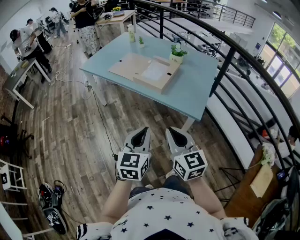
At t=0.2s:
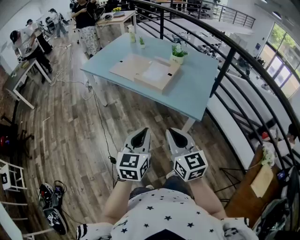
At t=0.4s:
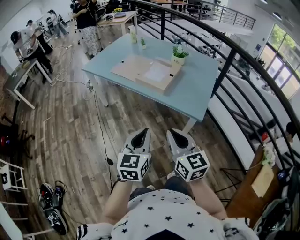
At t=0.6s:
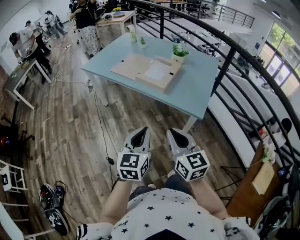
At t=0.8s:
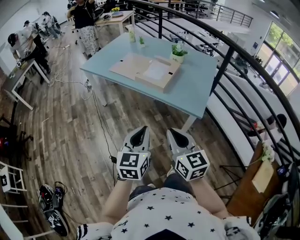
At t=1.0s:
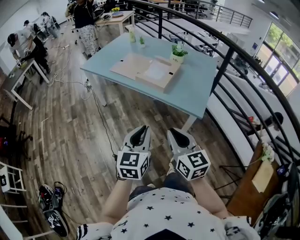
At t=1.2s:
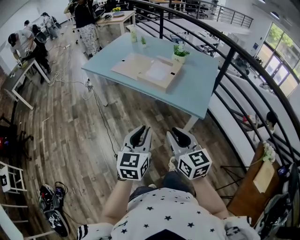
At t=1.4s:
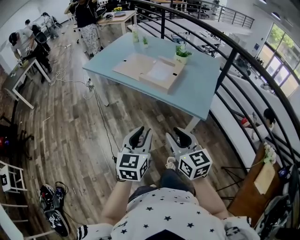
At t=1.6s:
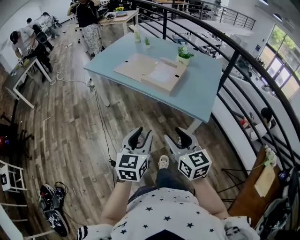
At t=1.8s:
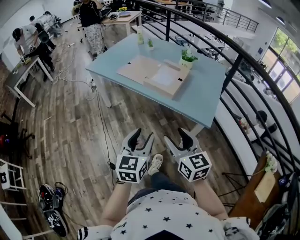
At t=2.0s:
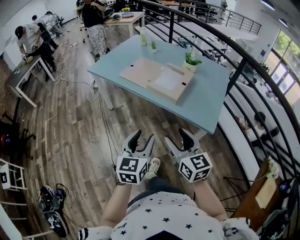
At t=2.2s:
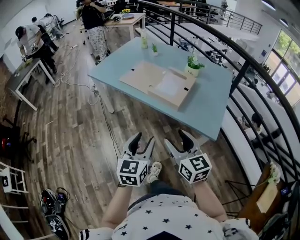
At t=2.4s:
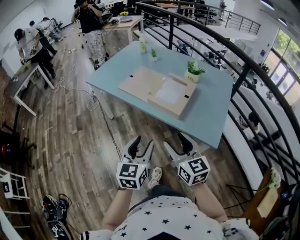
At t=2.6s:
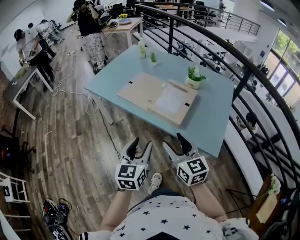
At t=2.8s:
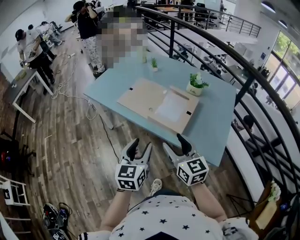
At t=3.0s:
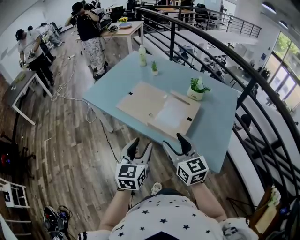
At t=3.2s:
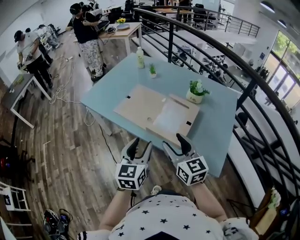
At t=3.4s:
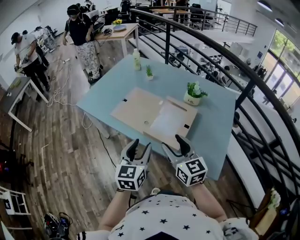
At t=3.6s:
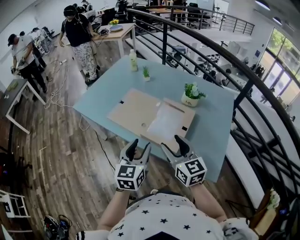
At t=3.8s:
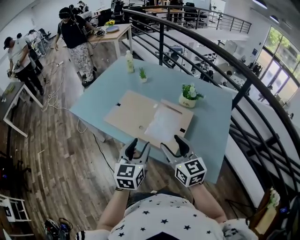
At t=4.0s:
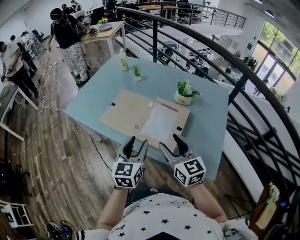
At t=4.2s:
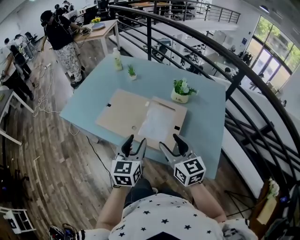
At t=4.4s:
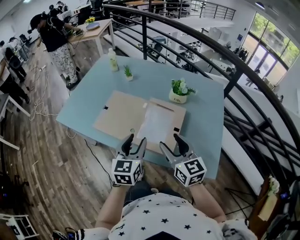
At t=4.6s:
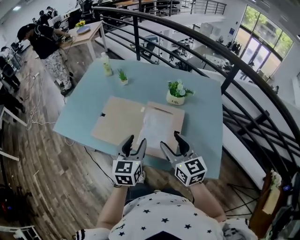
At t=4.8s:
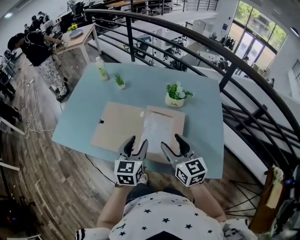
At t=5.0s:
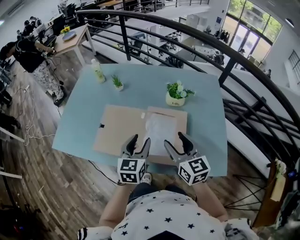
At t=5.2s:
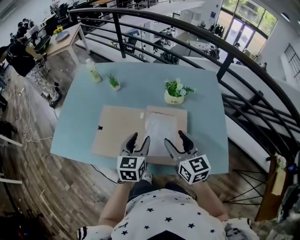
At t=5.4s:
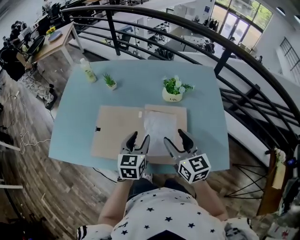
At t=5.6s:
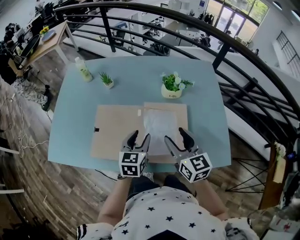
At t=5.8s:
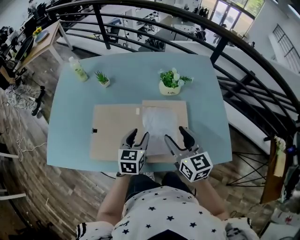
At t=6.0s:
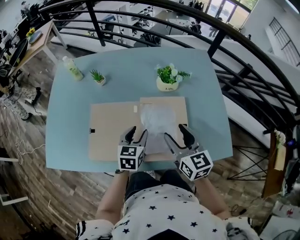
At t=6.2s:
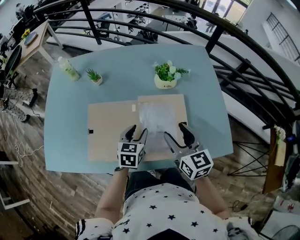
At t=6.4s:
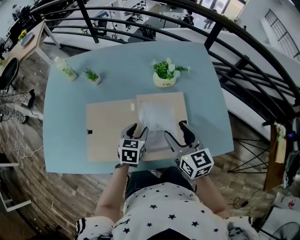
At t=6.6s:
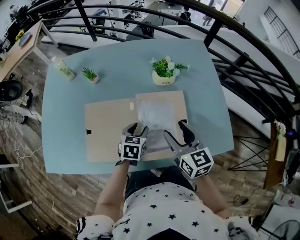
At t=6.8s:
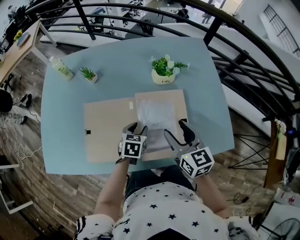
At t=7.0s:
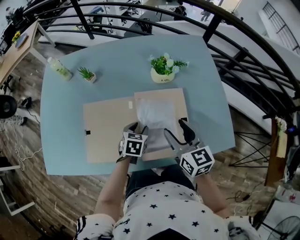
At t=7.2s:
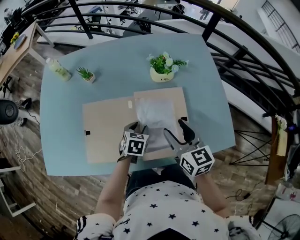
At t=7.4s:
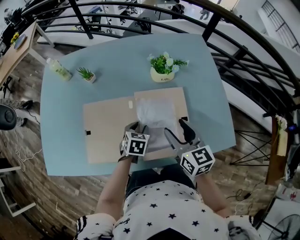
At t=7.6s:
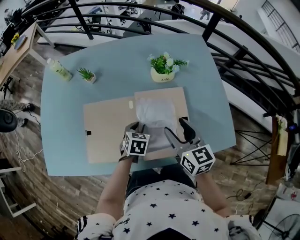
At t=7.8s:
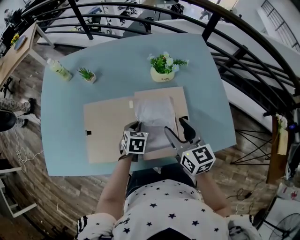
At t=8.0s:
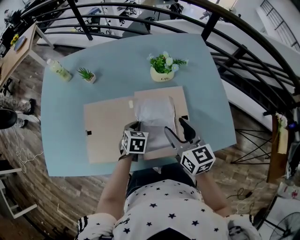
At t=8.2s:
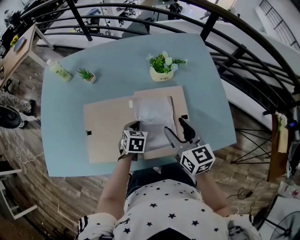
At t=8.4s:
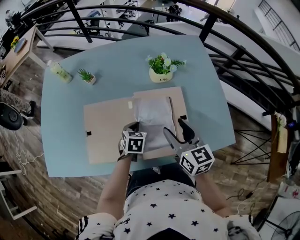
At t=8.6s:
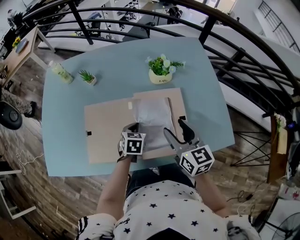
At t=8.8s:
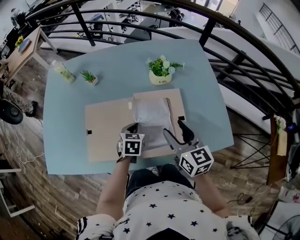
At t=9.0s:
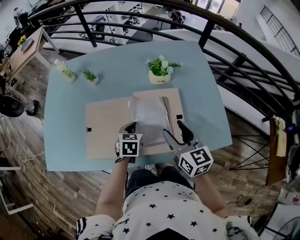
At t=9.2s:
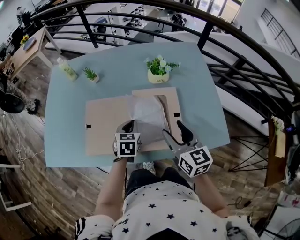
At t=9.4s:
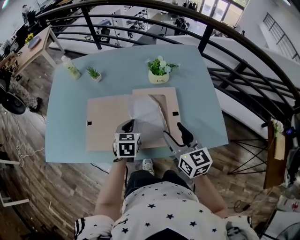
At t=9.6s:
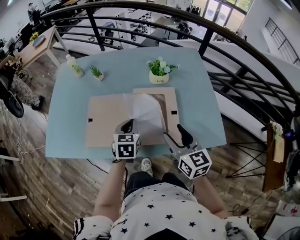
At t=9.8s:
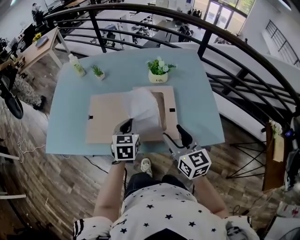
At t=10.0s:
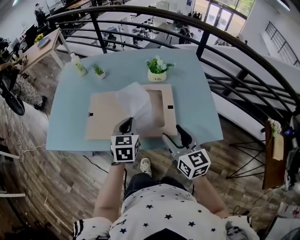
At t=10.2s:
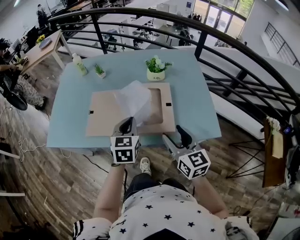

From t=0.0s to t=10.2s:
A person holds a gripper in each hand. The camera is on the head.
From t=0.0s to t=1.4s: The right gripper opens its fingers; the left gripper goes some 5 cm to the left, and opens up.
From t=1.4s to t=3.0s: The grippers both shift forward by roughly 30 cm. The right gripper opens. Meanwhile the left gripper opens.
From t=3.0s to t=4.4s: The left gripper travels forward by about 15 cm. The right gripper shifts approximately 15 cm forward and to the right.
From t=4.4s to t=5.8s: The left gripper moves forward and downward, approximately 20 cm, and changes its angle by some 30 degrees. Meanwhile the right gripper shifts some 15 cm forward and downward, and turns by roughly 20 degrees.
From t=5.8s to t=7.2s: The left gripper shifts about 10 cm downward, and rotates some 30 degrees.
From t=7.2s to t=8.8s: The left gripper closes.
From t=8.8s to t=10.2s: The left gripper shifts some 20 cm upward and backward, and turns by approximately 20 degrees. The right gripper goes roughly 15 cm backward.

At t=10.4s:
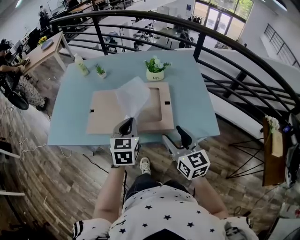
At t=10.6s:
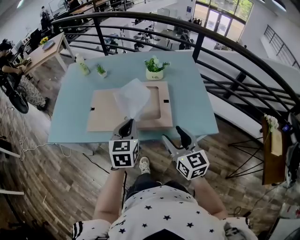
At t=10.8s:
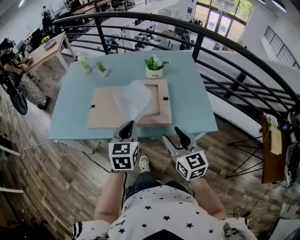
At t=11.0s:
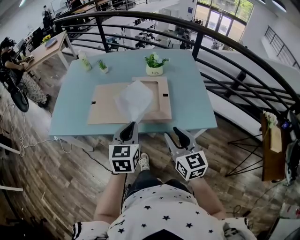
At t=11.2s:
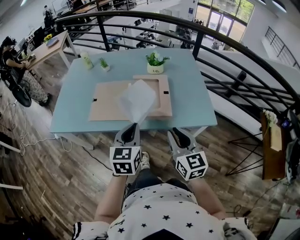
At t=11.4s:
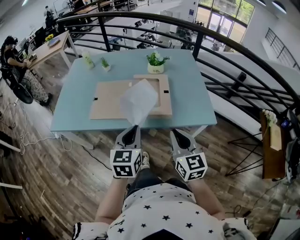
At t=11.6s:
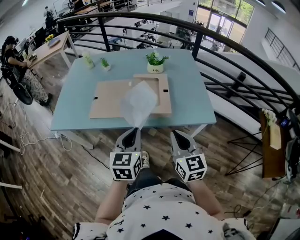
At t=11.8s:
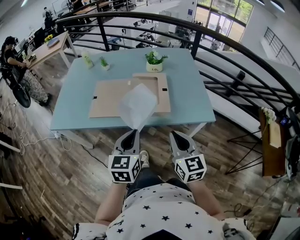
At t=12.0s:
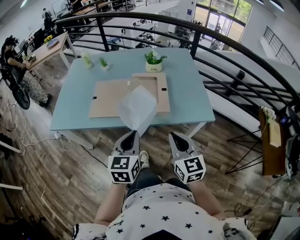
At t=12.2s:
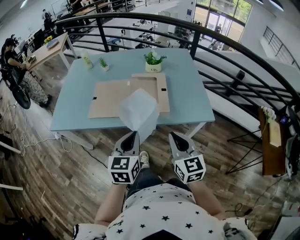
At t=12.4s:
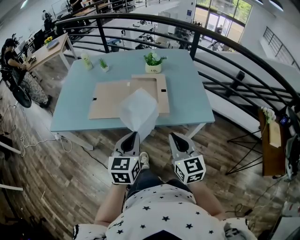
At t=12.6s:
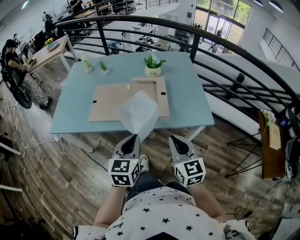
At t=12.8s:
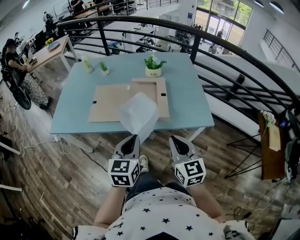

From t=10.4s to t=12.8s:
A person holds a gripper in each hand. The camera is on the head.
From t=10.4s to t=11.6s: The grippers both shift backward by some 15 cm. The right gripper closes its fingers.
From t=11.6s to t=12.8s: The grippers make only small movements.

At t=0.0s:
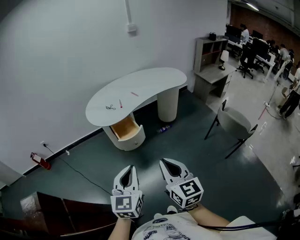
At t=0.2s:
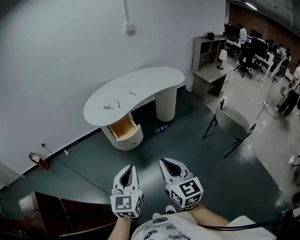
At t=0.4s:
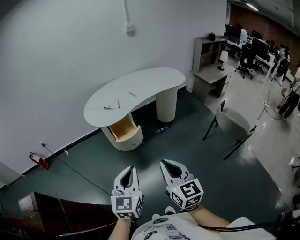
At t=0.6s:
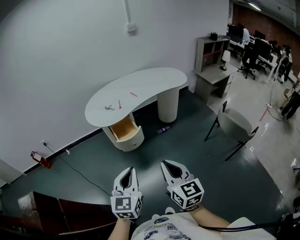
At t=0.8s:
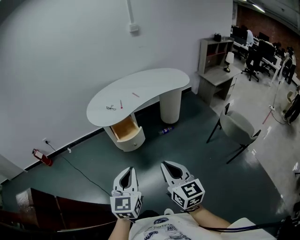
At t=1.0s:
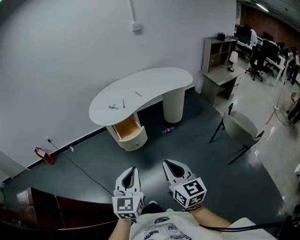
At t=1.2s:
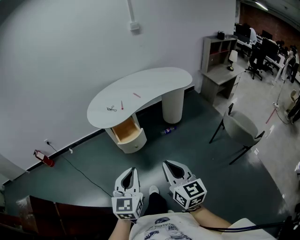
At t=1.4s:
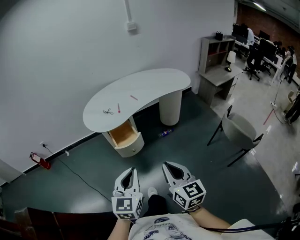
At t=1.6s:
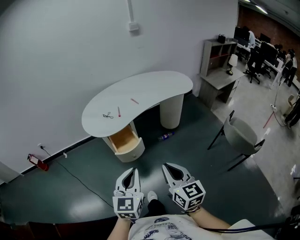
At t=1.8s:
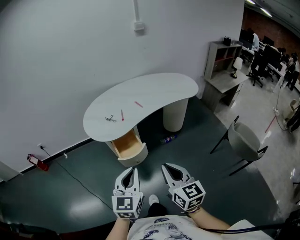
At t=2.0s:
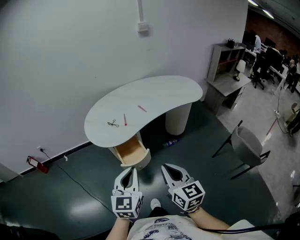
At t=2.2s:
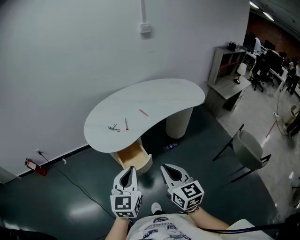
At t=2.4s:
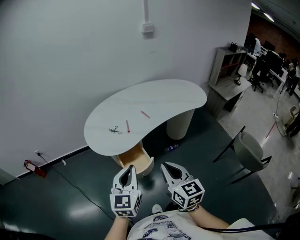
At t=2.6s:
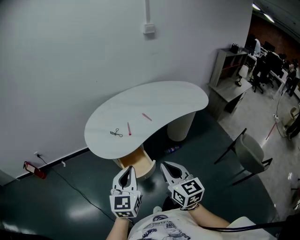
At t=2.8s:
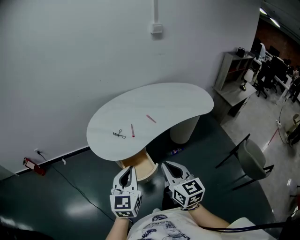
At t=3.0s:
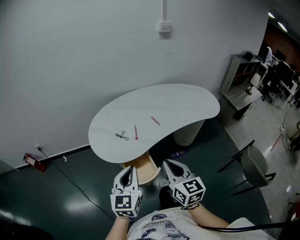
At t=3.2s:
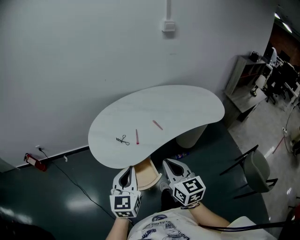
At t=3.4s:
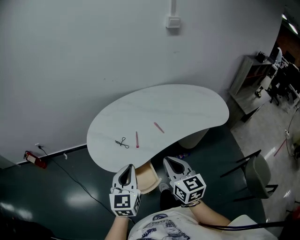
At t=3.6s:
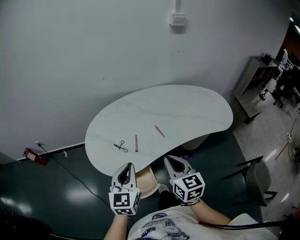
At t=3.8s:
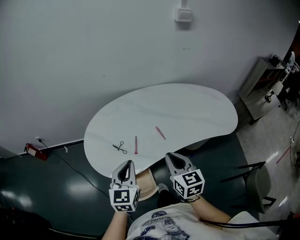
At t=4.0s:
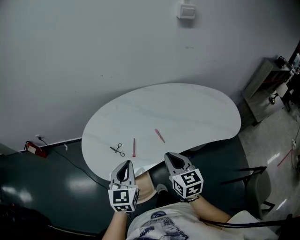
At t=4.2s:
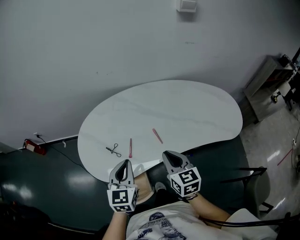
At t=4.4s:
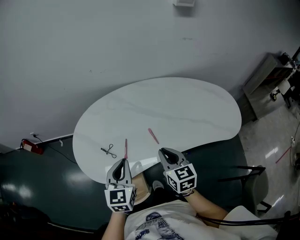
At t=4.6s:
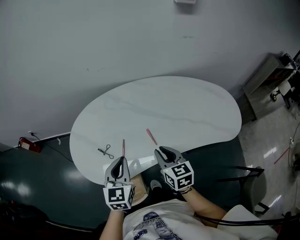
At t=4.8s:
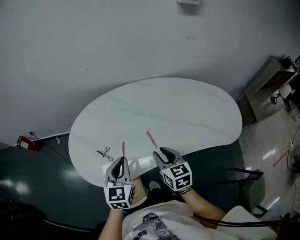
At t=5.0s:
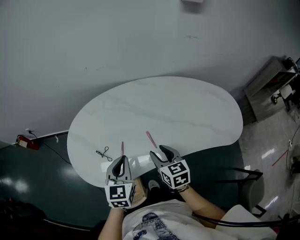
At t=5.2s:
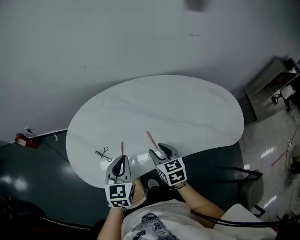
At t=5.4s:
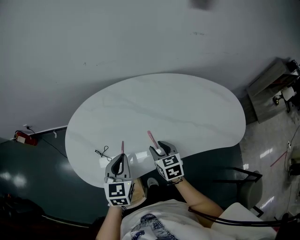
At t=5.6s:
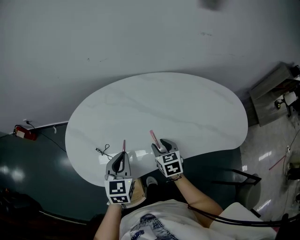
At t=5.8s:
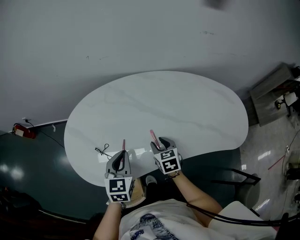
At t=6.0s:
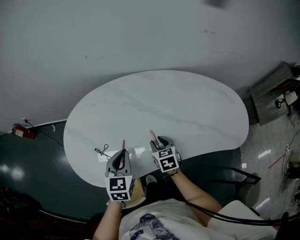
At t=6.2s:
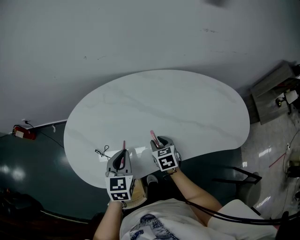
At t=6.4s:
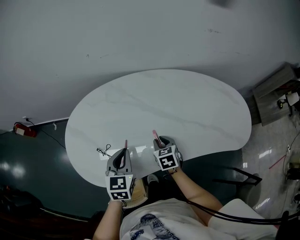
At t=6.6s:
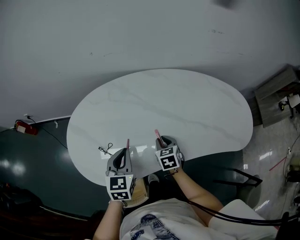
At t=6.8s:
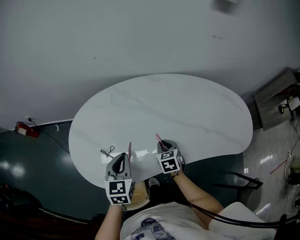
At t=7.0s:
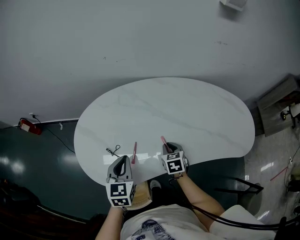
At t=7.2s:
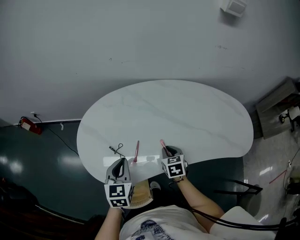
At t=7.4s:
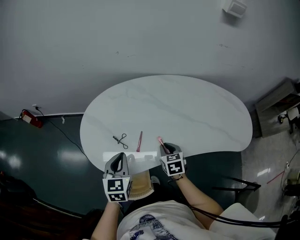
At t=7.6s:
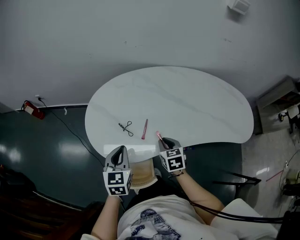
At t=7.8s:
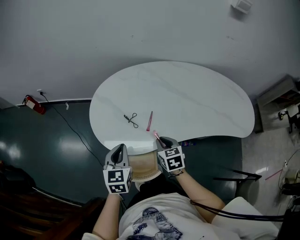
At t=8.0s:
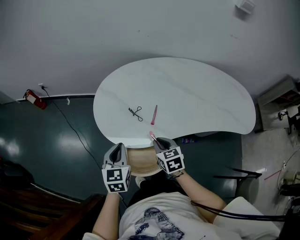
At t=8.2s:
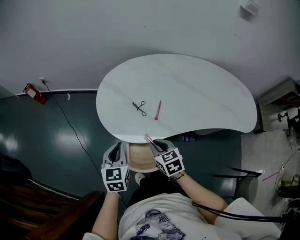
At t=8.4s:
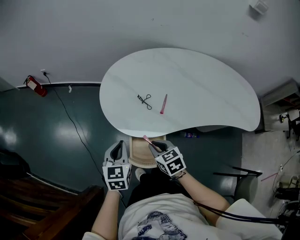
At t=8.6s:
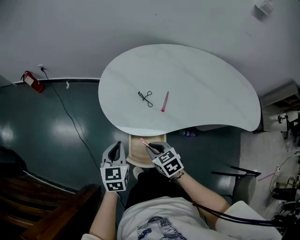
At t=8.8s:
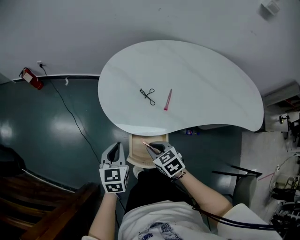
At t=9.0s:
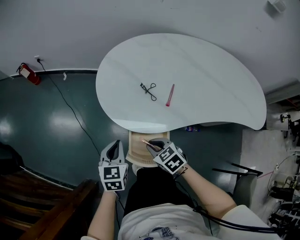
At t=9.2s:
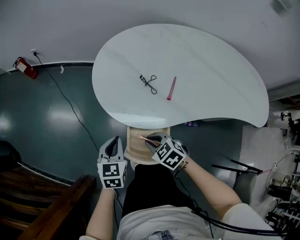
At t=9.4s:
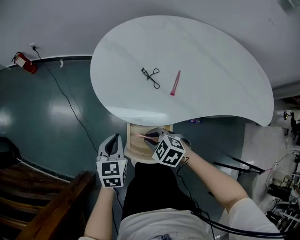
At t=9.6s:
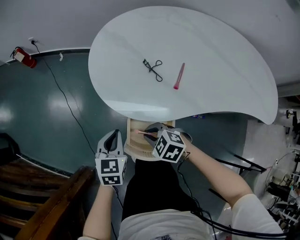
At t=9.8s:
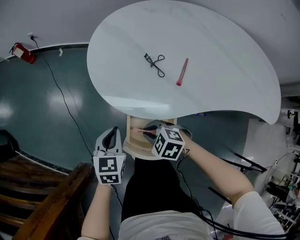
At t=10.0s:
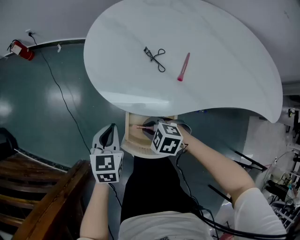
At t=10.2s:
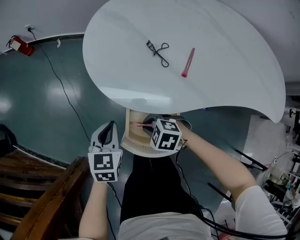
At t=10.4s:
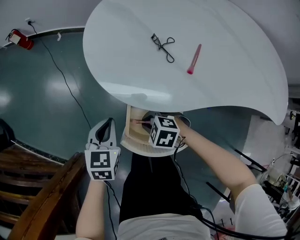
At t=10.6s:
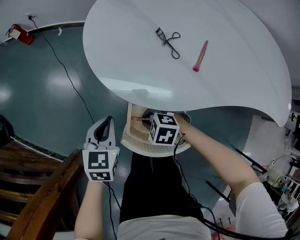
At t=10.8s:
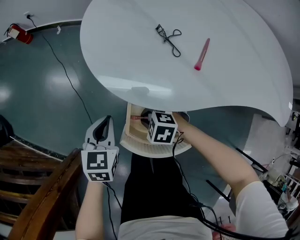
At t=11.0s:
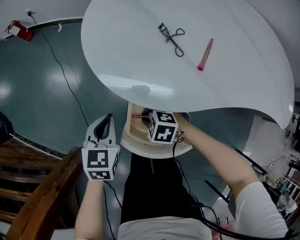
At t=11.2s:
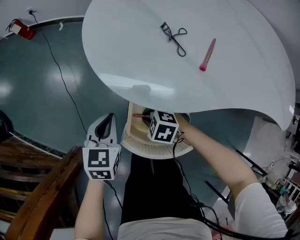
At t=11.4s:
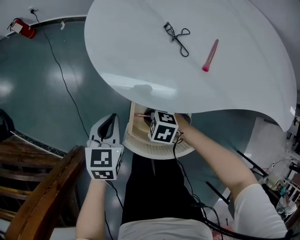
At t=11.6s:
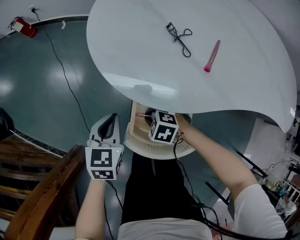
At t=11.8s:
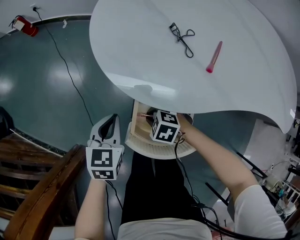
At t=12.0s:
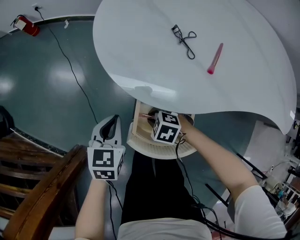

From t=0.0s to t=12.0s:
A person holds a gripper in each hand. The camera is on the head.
From t=0.0s to t=1.6s: The two grippers go approximately 15 cm forward and to the right.
From t=1.6s to t=3.0s: The two grippers go roughly 30 cm forward.
From t=3.0s to t=4.4s: The left gripper goes approximately 25 cm forward; the right gripper travels forward and downward by approximately 30 cm.
From t=4.4s to t=6.0s: The left gripper shifts roughly 10 cm downward and forward; the right gripper moves downward and forward, approximately 20 cm, turns by roughly 20 degrees, and opens.
From t=6.0s to t=7.6s: The left gripper is displaced to the left and backward by some 15 cm; the right gripper shifts some 15 cm backward and to the left, and closes up.
From t=7.6s to t=9.0s: The right gripper travels to the left and backward by approximately 25 cm, and changes its angle by some 40 degrees. Meanwhile the left gripper heads to the left, downward and backward, covering approximately 20 cm.
From t=9.0s to t=10.4s: The grippers both shift downward by some 10 cm. The right gripper turns by approximately 40 degrees.
From t=10.4s to t=12.0s: The right gripper heads downward, covering some 5 cm.
